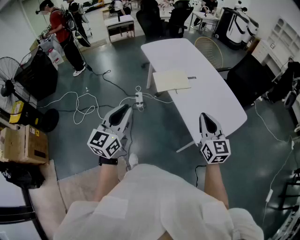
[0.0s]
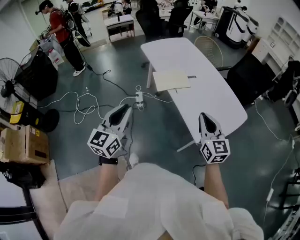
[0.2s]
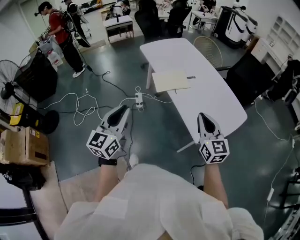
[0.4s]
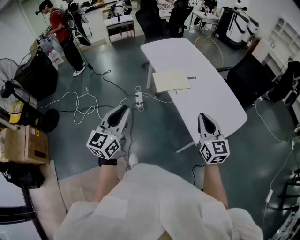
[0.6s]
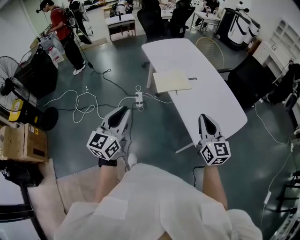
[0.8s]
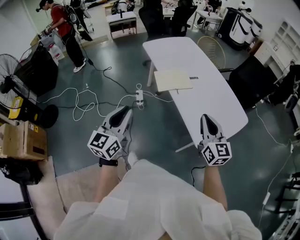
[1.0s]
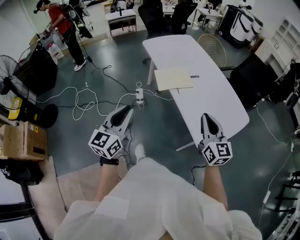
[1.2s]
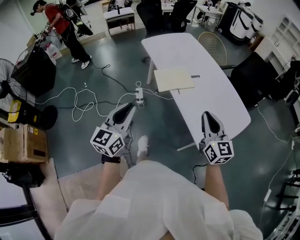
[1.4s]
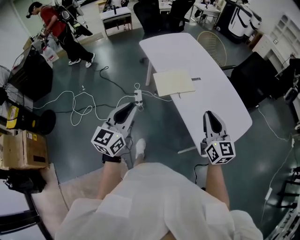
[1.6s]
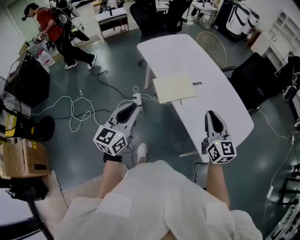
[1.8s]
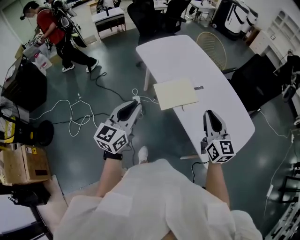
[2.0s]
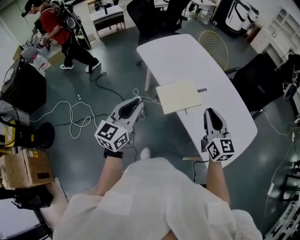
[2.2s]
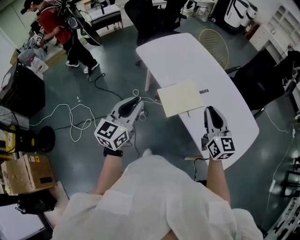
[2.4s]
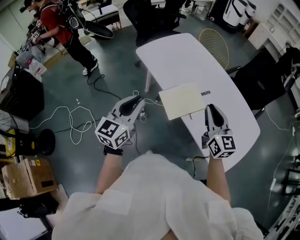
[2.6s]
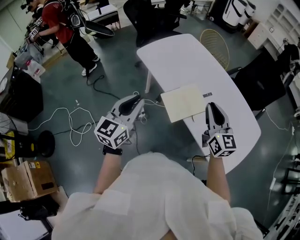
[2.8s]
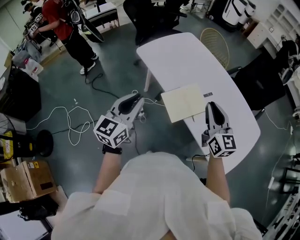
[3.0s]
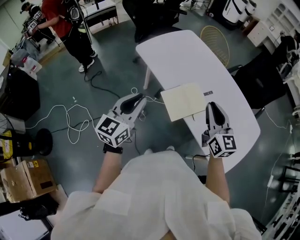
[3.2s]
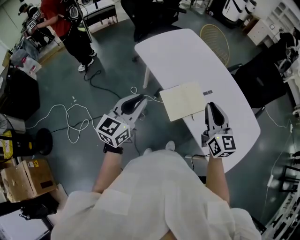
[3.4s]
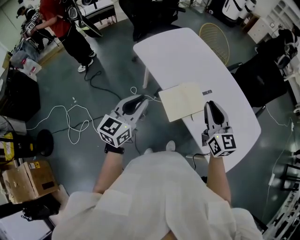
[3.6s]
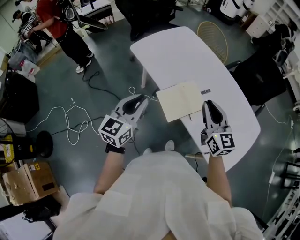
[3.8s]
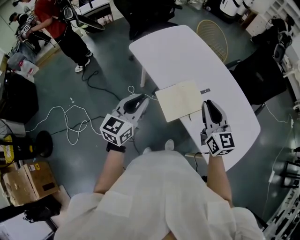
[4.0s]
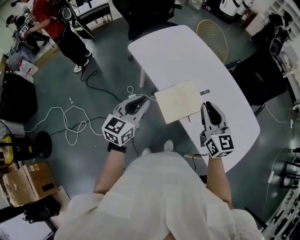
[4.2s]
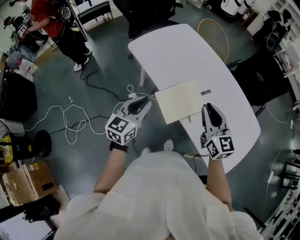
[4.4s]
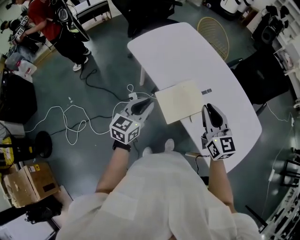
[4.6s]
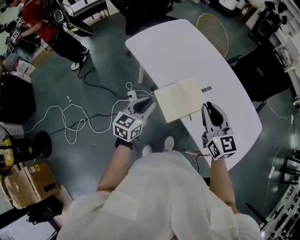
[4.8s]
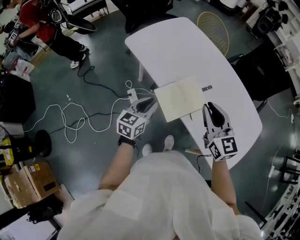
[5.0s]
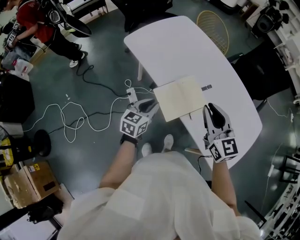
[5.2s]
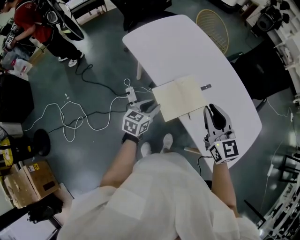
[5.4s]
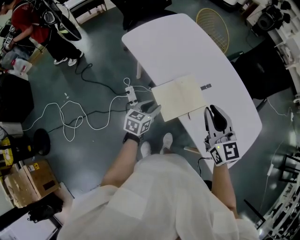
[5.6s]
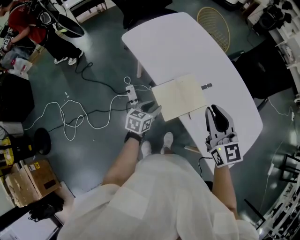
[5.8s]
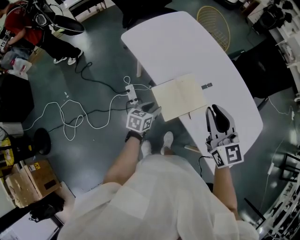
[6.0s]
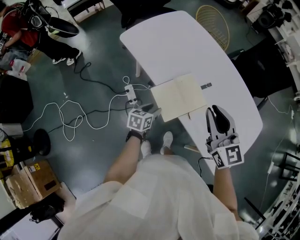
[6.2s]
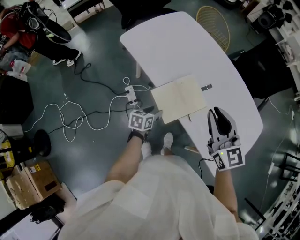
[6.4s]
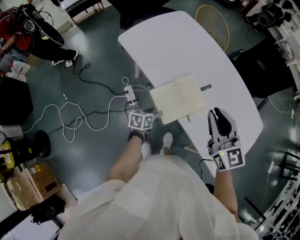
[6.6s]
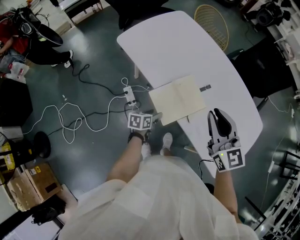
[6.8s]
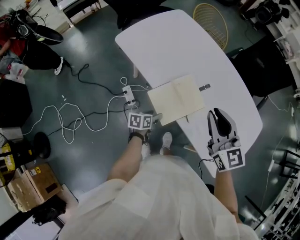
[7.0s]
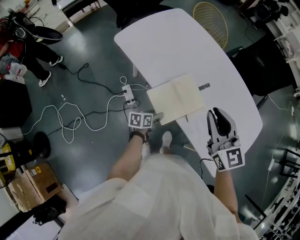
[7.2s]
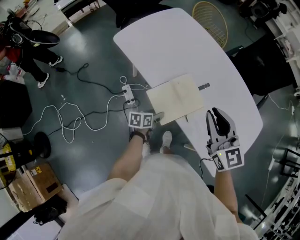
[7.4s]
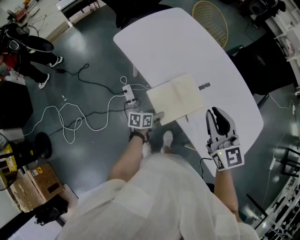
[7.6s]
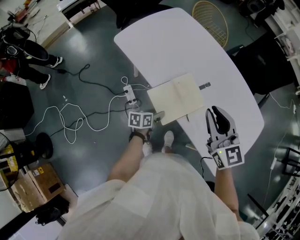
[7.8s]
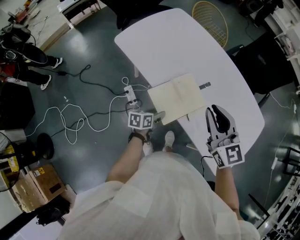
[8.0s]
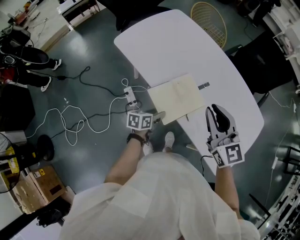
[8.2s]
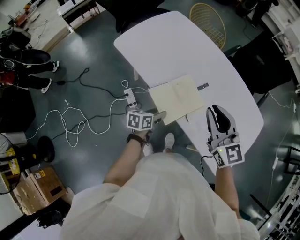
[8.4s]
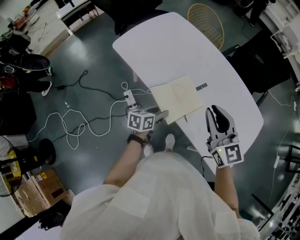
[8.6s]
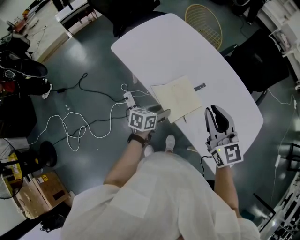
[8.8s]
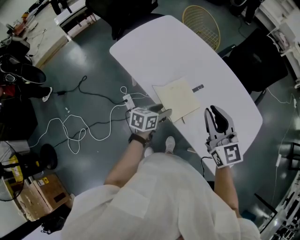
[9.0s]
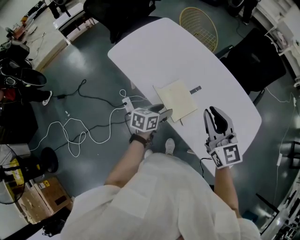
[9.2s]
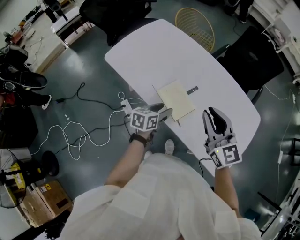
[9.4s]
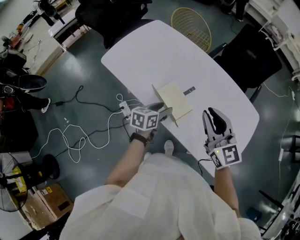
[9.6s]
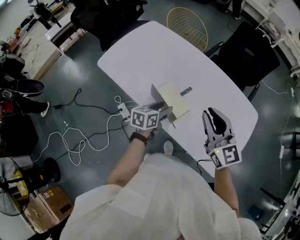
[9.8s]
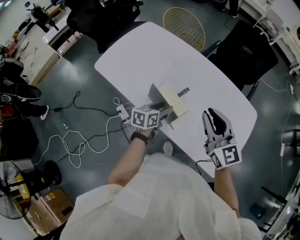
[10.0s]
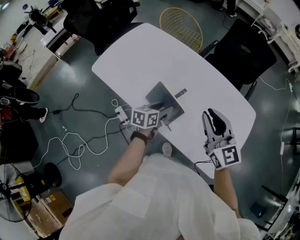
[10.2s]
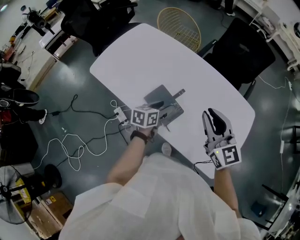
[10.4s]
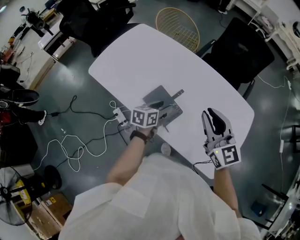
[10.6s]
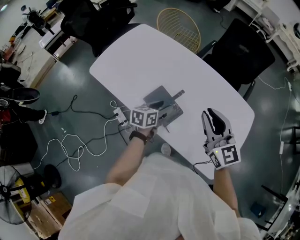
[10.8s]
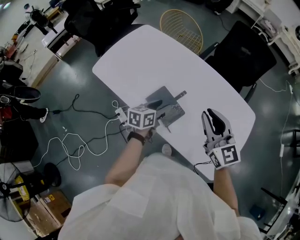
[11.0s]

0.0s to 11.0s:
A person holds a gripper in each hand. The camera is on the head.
0.0s to 1.6s: Both grippers travel together forward, some 10 cm.
1.6s to 3.2s: The grippers both shift forward and to the left by about 30 cm.
3.2s to 4.8s: The right gripper changes place by approximately 5 cm; the left gripper shifts roughly 15 cm downward, forward and to the right.
4.8s to 6.2s: The left gripper goes some 15 cm downward, swivels about 30 degrees, and opens up.
6.2s to 7.8s: The left gripper ends up roughly 5 cm from where it was.
7.8s to 9.4s: The left gripper is displaced upward, to the right and forward by approximately 15 cm, and rotates approximately 20 degrees. Meanwhile the right gripper shifts approximately 5 cm to the right.
9.4s to 11.0s: The left gripper travels forward by approximately 5 cm. Meanwhile the right gripper heads to the right, covering about 5 cm.

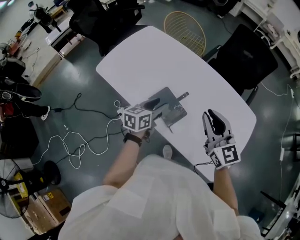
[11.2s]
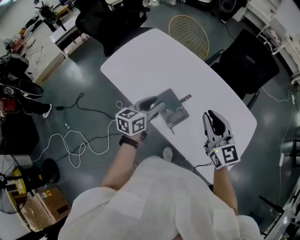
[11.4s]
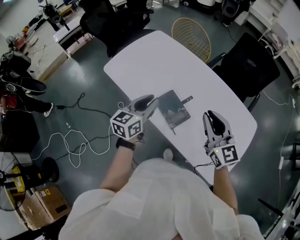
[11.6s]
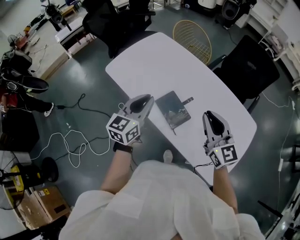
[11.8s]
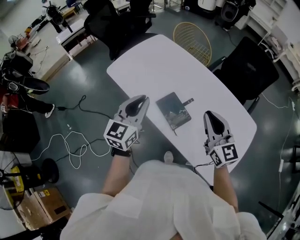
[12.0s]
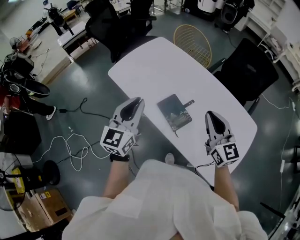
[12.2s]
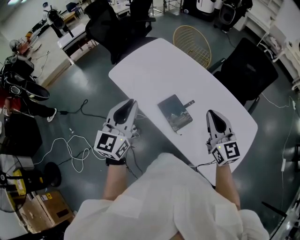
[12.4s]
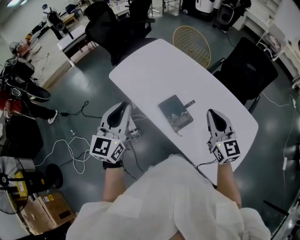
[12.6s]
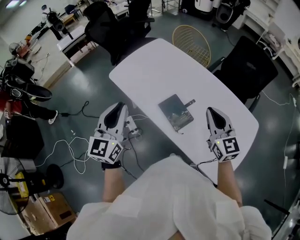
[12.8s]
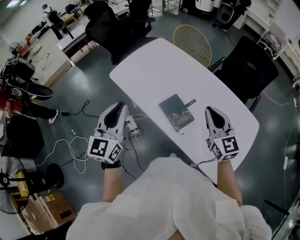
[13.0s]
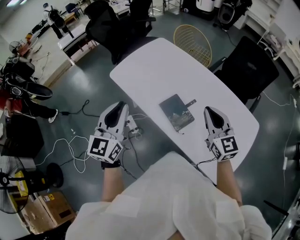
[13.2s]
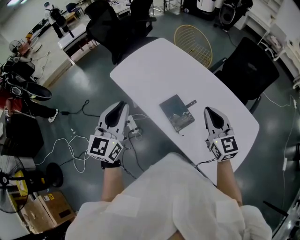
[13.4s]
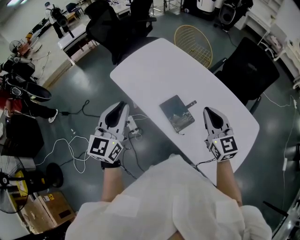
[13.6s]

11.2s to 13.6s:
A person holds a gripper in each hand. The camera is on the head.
11.2s to 12.4s: The left gripper moves upward and to the left, some 25 cm, turns by roughly 40 degrees, and closes its fingers.
12.4s to 13.6s: The grippers move only a little.

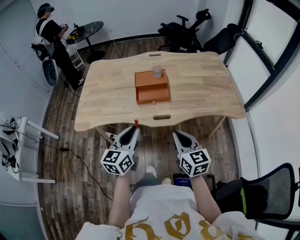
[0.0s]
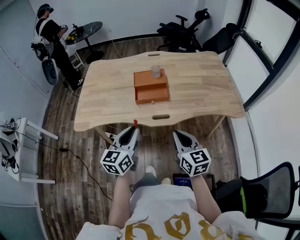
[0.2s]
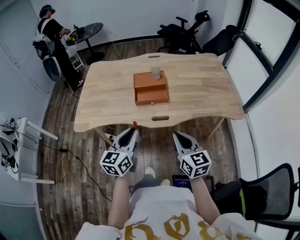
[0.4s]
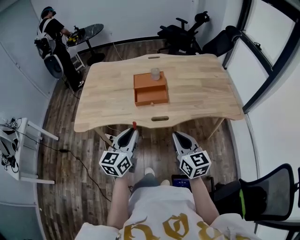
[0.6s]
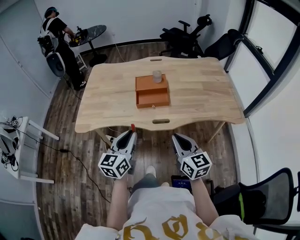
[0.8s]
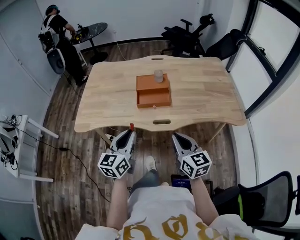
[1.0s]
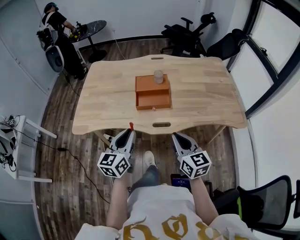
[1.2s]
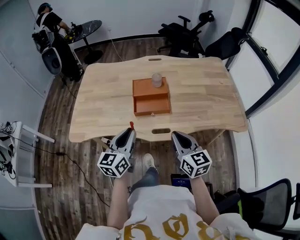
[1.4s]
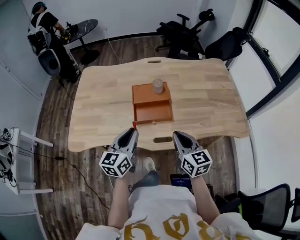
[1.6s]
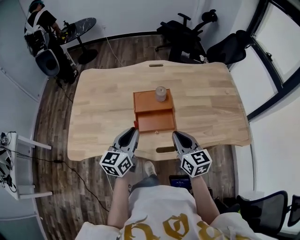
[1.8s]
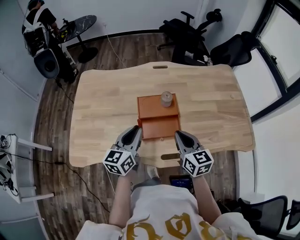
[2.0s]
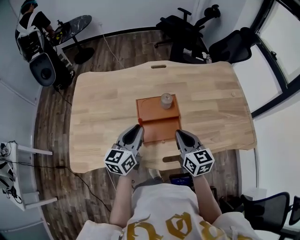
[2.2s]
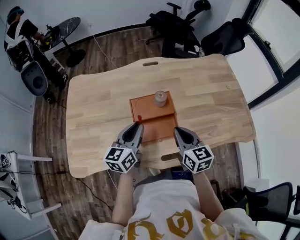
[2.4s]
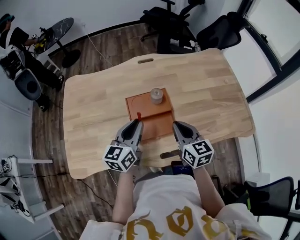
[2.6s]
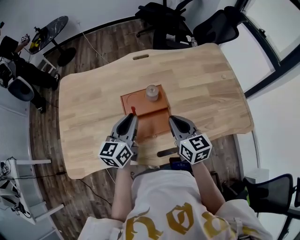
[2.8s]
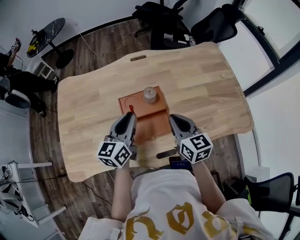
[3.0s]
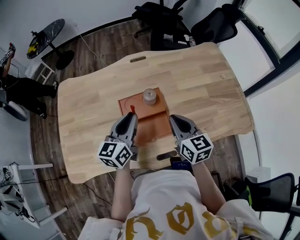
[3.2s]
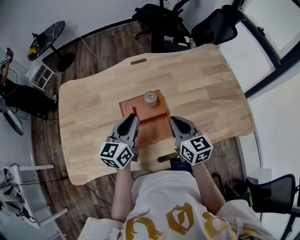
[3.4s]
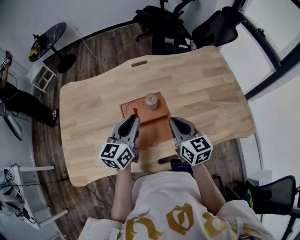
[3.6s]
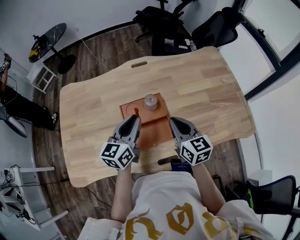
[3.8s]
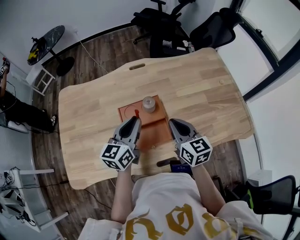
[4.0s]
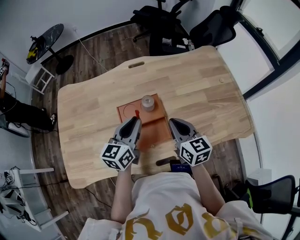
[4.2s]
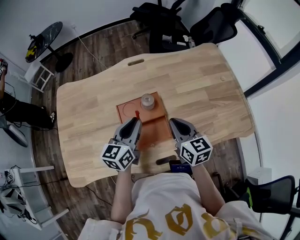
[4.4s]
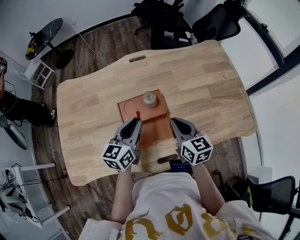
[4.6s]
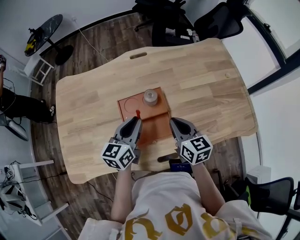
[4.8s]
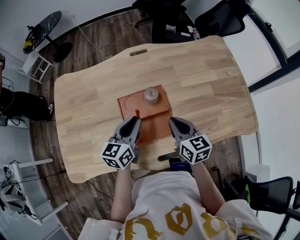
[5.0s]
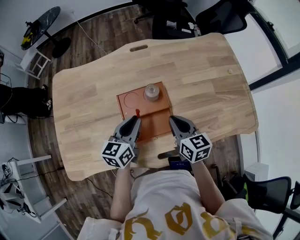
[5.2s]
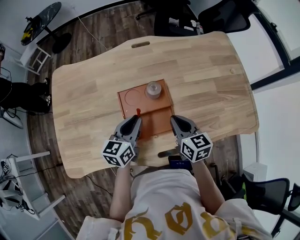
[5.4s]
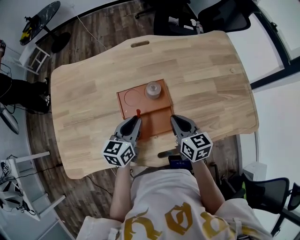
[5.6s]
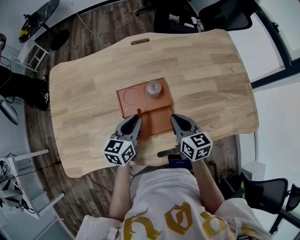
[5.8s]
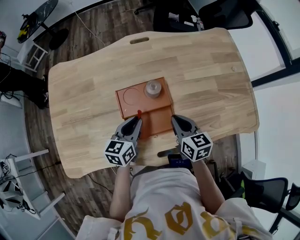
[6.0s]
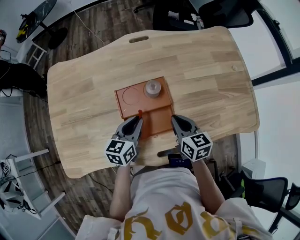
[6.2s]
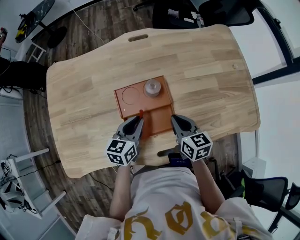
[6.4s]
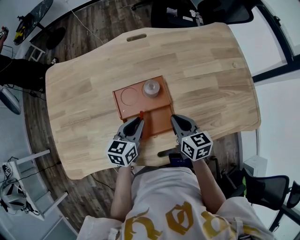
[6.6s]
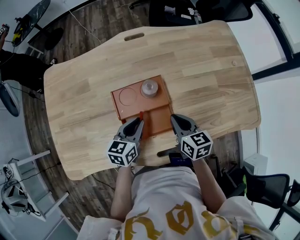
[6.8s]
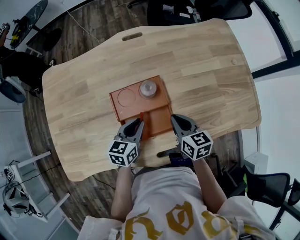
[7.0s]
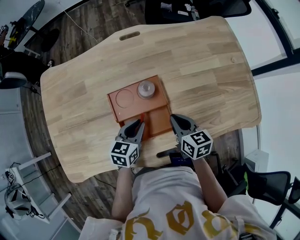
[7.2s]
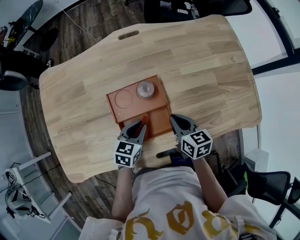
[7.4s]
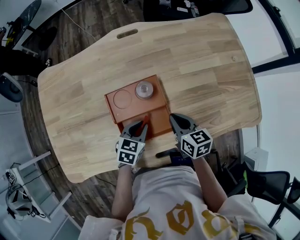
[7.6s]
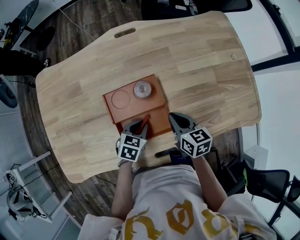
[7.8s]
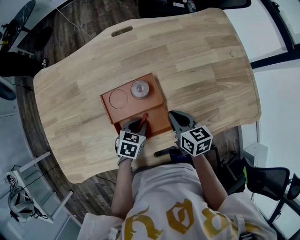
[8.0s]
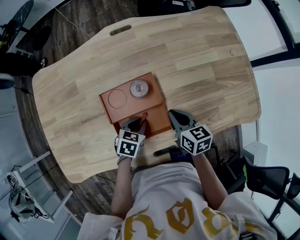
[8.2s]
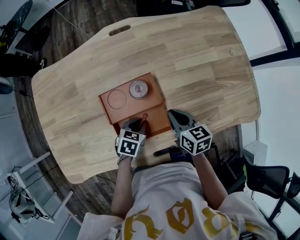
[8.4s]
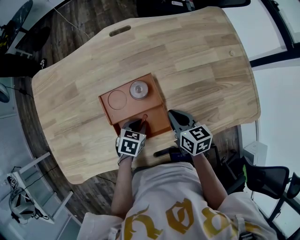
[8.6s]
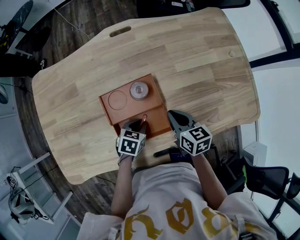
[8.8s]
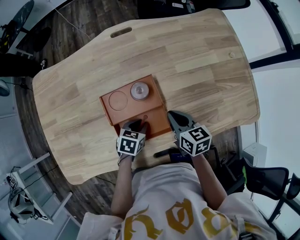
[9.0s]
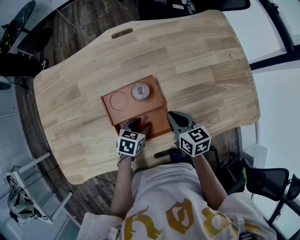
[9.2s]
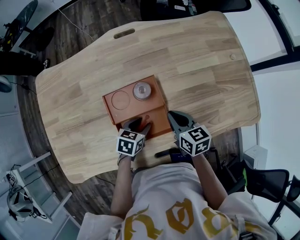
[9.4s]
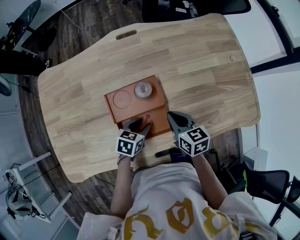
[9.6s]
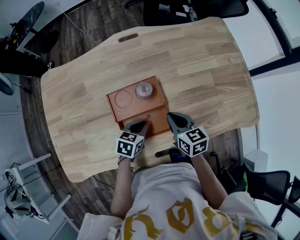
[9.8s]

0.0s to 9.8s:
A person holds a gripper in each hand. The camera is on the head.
0.0s to 1.4s: Both grippers travel together forward, roughly 10 cm.
1.4s to 2.8s: The grippers both shift forward by roughly 25 cm.
2.8s to 4.2s: The left gripper ends up roughly 5 cm from where it was.
4.2s to 5.6s: The grippers both shift downward by approximately 10 cm.
5.6s to 7.0s: The left gripper shifts about 5 cm downward.
7.0s to 8.4s: The left gripper shifts about 10 cm downward, and rotates roughly 30 degrees.
8.4s to 9.8s: The left gripper opens, then closes again.
